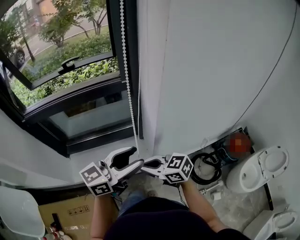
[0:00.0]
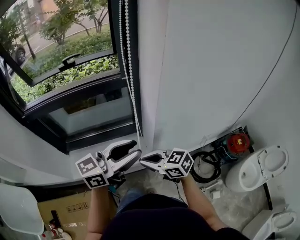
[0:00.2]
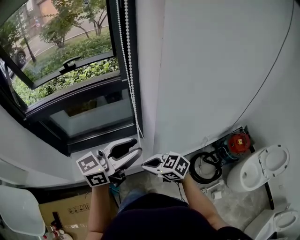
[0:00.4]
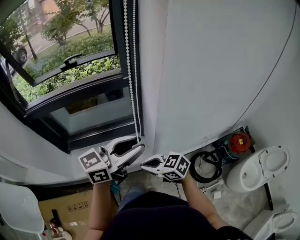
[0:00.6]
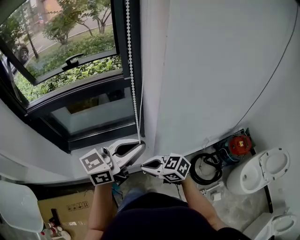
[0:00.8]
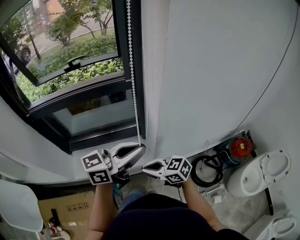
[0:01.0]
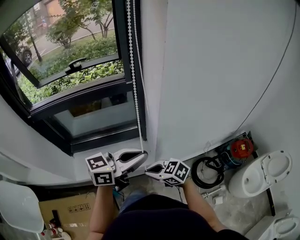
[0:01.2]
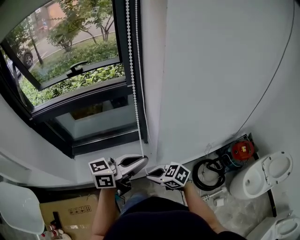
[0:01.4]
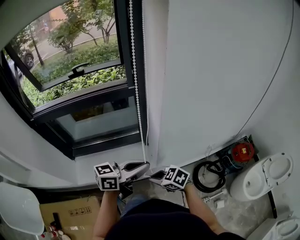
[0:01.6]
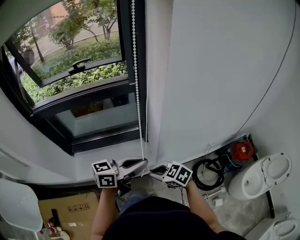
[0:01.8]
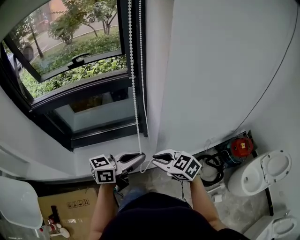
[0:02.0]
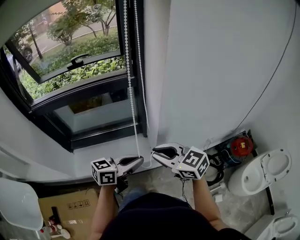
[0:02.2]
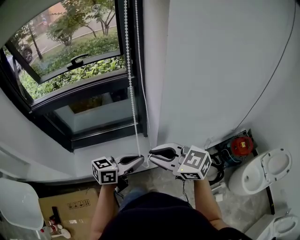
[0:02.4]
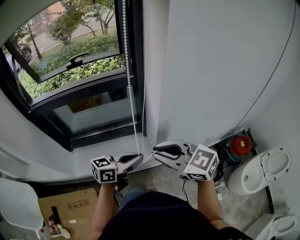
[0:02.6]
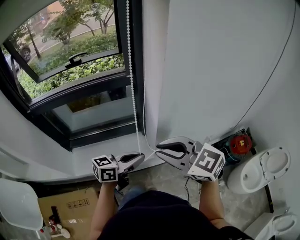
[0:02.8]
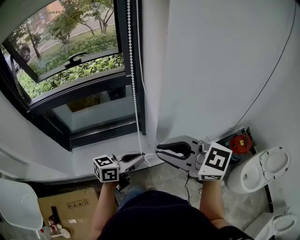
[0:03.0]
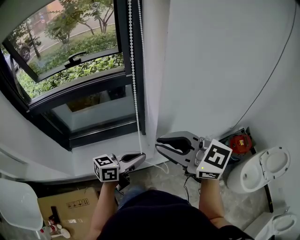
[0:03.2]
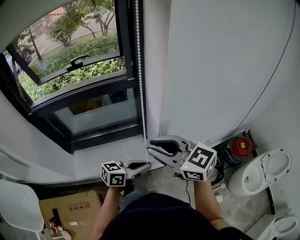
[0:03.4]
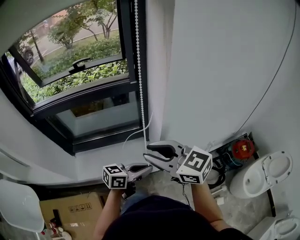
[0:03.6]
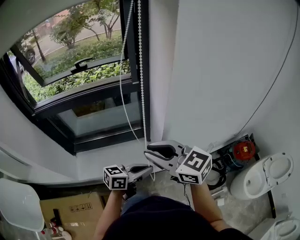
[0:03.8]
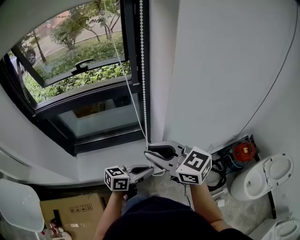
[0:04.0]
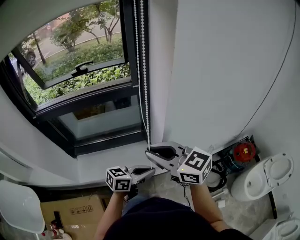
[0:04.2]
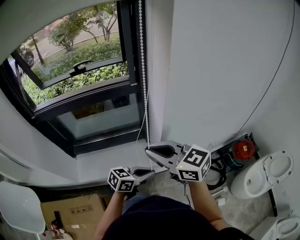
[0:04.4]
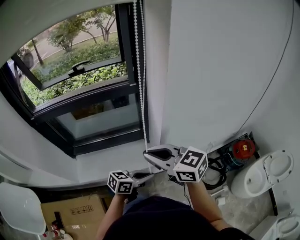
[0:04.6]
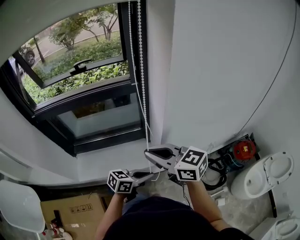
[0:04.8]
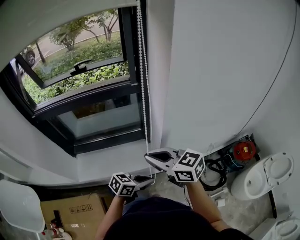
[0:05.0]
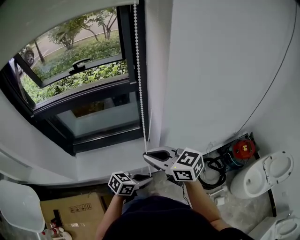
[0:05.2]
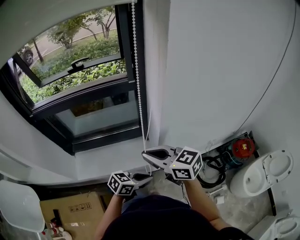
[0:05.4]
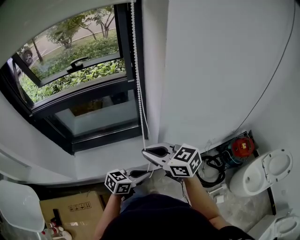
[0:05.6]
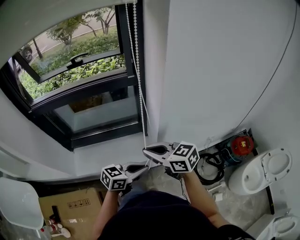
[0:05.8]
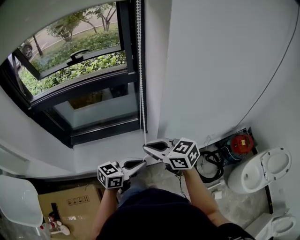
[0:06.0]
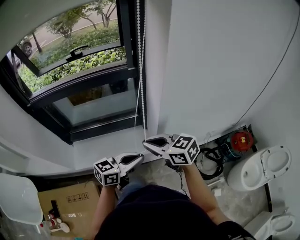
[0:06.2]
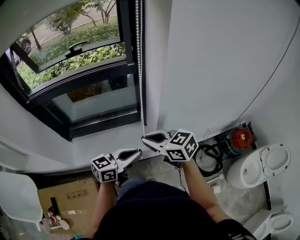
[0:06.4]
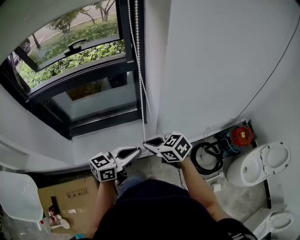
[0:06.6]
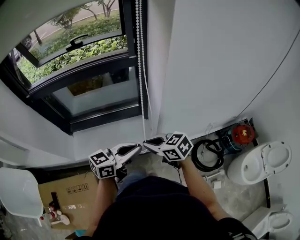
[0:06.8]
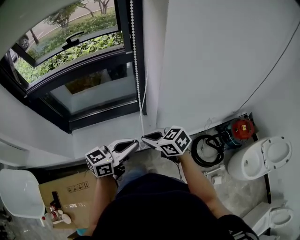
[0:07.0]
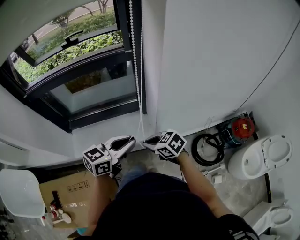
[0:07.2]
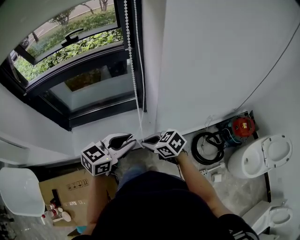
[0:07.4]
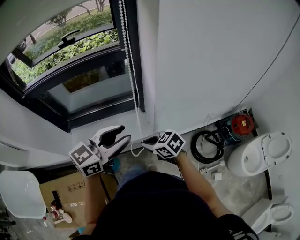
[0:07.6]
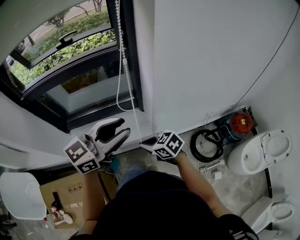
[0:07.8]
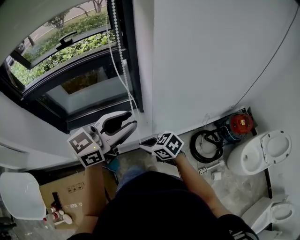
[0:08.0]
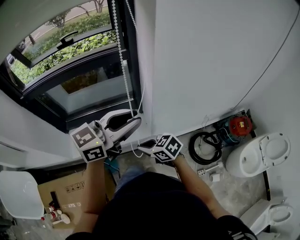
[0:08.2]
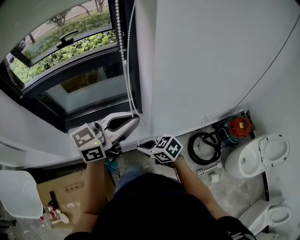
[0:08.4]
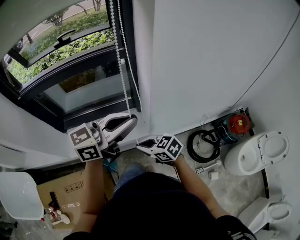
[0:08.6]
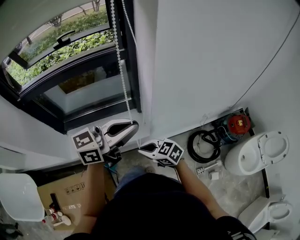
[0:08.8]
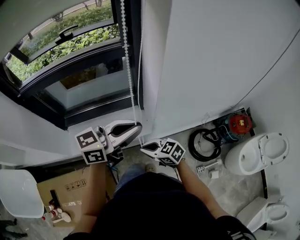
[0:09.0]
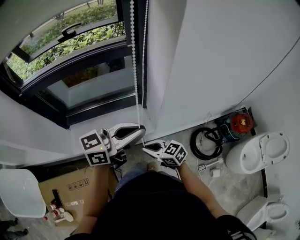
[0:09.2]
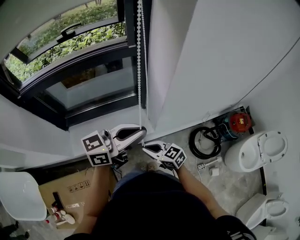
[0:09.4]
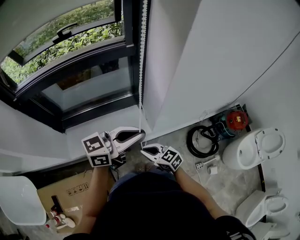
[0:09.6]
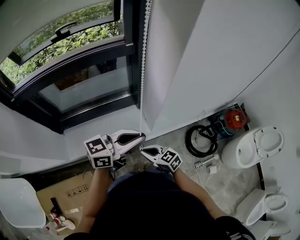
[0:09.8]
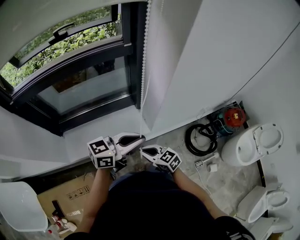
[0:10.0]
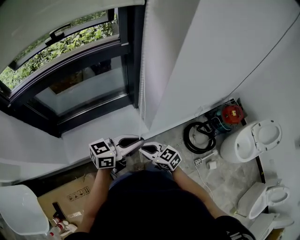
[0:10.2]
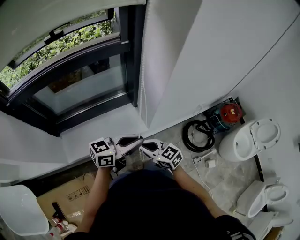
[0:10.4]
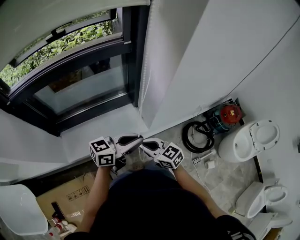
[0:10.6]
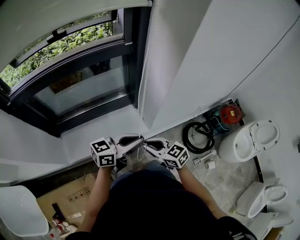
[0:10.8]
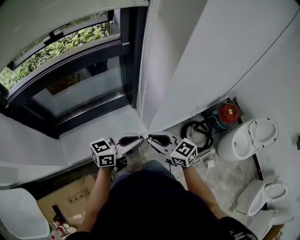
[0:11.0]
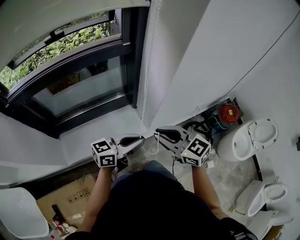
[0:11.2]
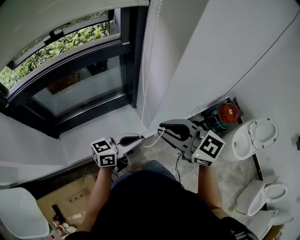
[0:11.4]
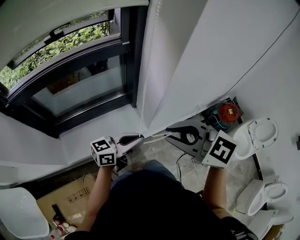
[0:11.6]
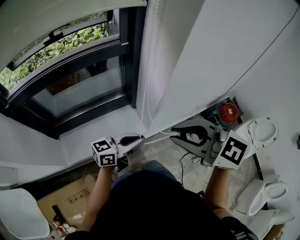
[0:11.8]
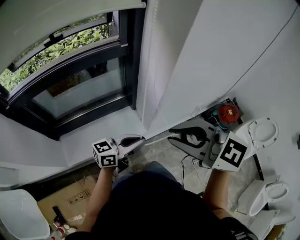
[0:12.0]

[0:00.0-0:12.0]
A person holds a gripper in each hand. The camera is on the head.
0:00.0 to 0:01.6: The left gripper goes approximately 5 cm downward, and closes, while the right gripper goes approximately 10 cm downward, and turns by approximately 20 degrees.
0:01.6 to 0:03.0: The right gripper moves upward, roughly 25 cm, and angles its fingers upward, by approximately 30 degrees.
0:03.0 to 0:04.4: The right gripper changes place by some 10 cm; the left gripper moves downward, approximately 5 cm.
0:04.4 to 0:06.0: The right gripper goes approximately 10 cm downward.
0:06.0 to 0:07.6: The right gripper travels downward by approximately 15 cm, and rotates approximately 20 degrees; the left gripper is displaced upward by some 10 cm, and opens up.
0:07.6 to 0:09.0: The left gripper closes.
0:09.0 to 0:10.4: The right gripper turns by some 20 degrees, while the left gripper shifts roughly 15 cm downward.
0:10.4 to 0:12.0: The right gripper shifts approximately 30 cm upward, and changes its angle by some 20 degrees.

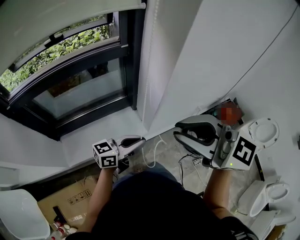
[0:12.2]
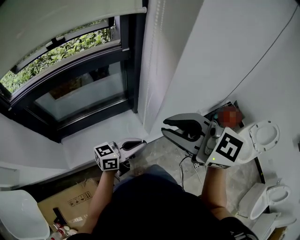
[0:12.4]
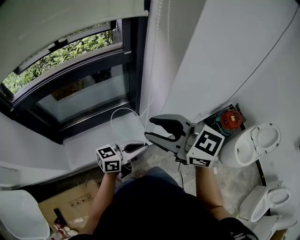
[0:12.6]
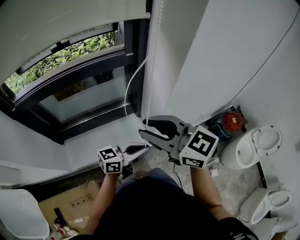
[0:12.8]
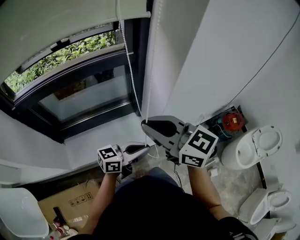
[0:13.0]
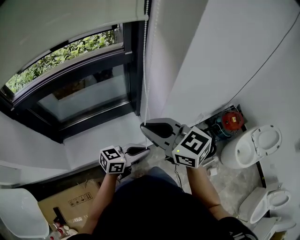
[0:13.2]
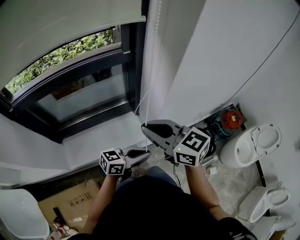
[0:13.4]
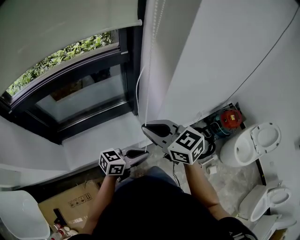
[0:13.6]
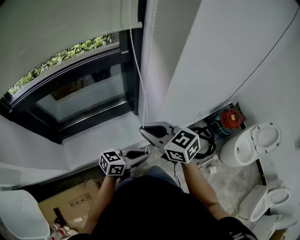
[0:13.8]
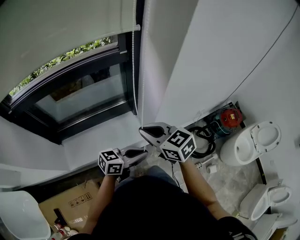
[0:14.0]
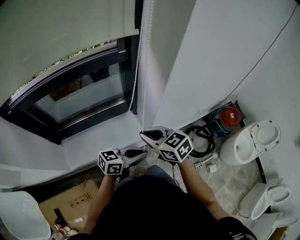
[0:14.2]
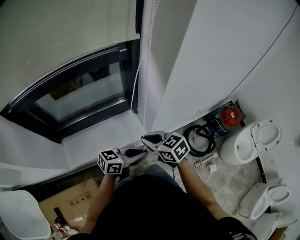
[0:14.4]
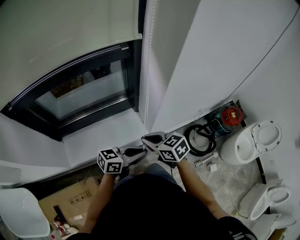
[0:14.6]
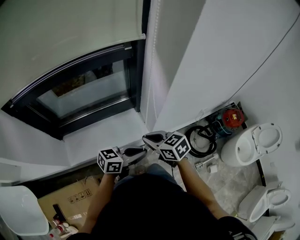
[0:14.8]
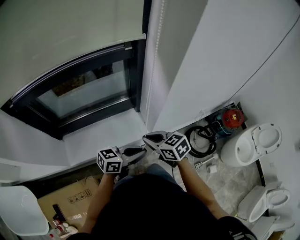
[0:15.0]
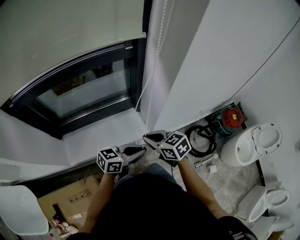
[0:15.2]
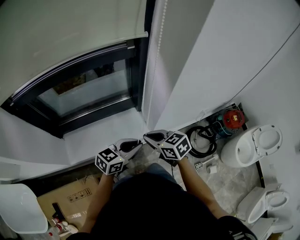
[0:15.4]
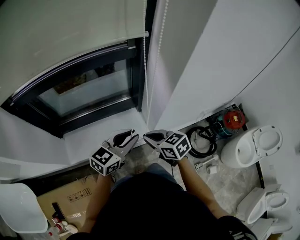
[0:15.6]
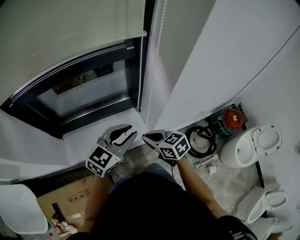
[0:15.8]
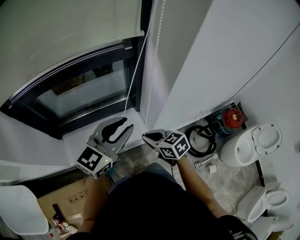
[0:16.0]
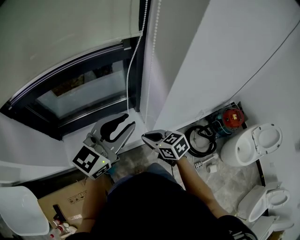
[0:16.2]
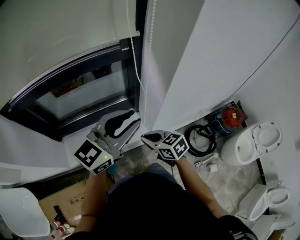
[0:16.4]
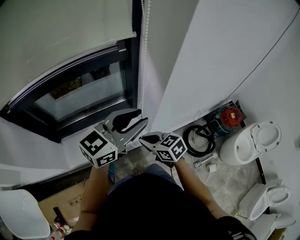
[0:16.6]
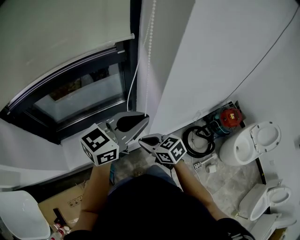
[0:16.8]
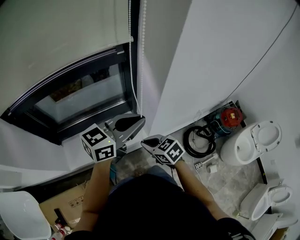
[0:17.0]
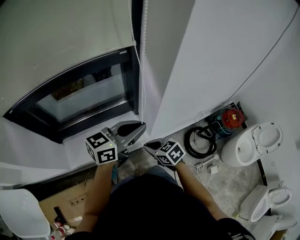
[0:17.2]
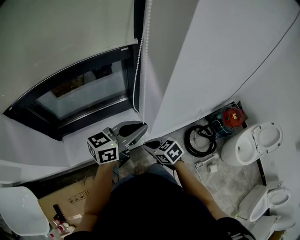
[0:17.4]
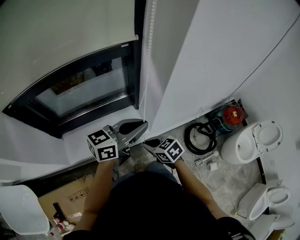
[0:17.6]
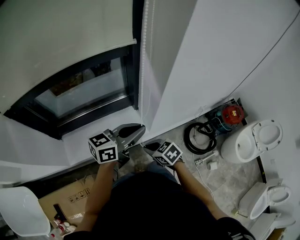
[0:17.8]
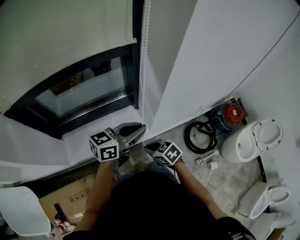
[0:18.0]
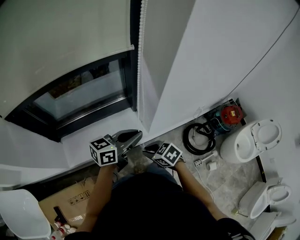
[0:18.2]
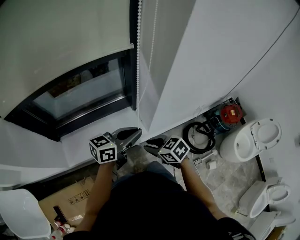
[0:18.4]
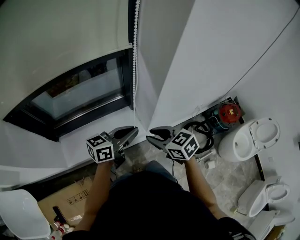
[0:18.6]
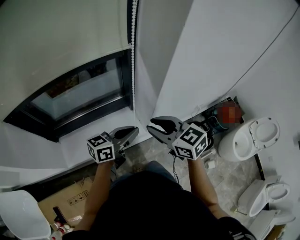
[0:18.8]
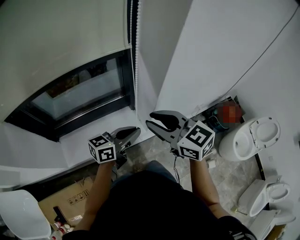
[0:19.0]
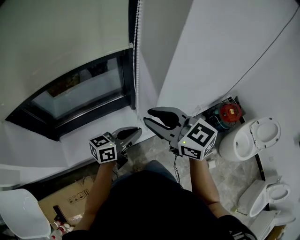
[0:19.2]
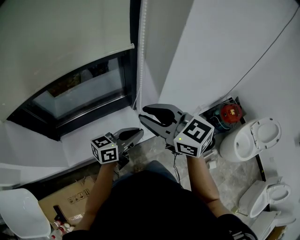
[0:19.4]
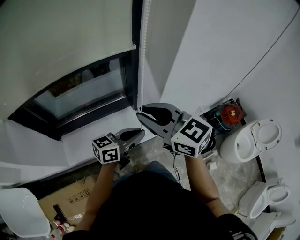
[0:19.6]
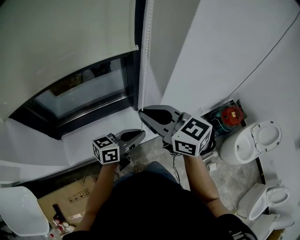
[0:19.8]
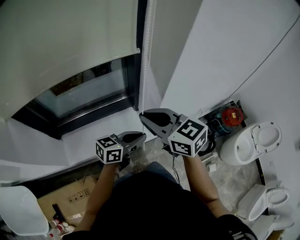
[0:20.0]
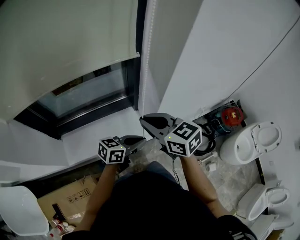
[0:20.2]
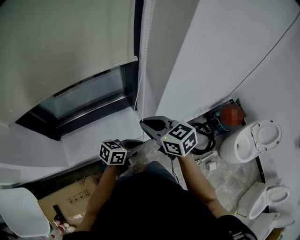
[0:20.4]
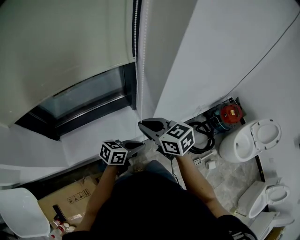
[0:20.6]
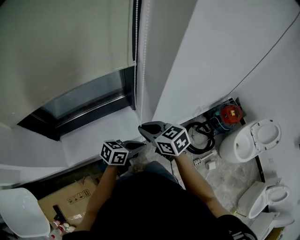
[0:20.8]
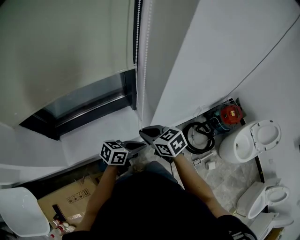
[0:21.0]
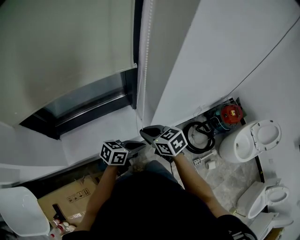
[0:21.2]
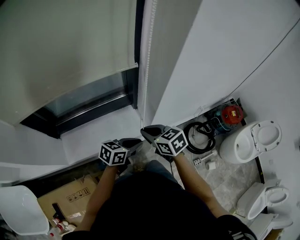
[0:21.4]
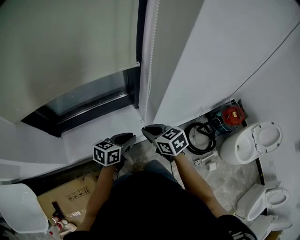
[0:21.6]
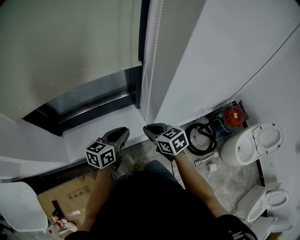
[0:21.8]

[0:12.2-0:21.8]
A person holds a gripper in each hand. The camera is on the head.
0:12.2 to 0:13.8: The left gripper is displaced downward by approximately 5 cm. Meanwhile the right gripper heads downward, covering some 15 cm, changes its angle by some 30 degrees, and opens and closes again.
0:13.8 to 0:15.4: The right gripper travels downward by about 10 cm; the left gripper ends up approximately 5 cm from where it was.
0:15.4 to 0:17.0: The left gripper travels upward by roughly 15 cm.
0:17.0 to 0:18.6: The left gripper is displaced downward by about 10 cm; the right gripper ends up some 5 cm from where it was.
0:18.6 to 0:20.2: The left gripper is displaced downward by some 5 cm, while the right gripper is displaced upward by roughly 10 cm.
0:20.2 to 0:21.8: The left gripper ends up roughly 10 cm from where it was, and swivels approximately 30 degrees; the right gripper heads downward, covering approximately 15 cm.

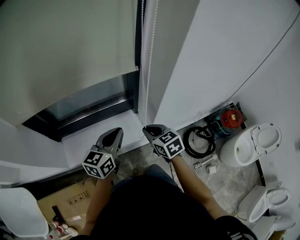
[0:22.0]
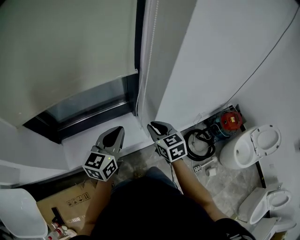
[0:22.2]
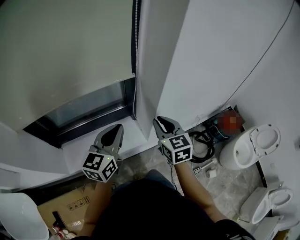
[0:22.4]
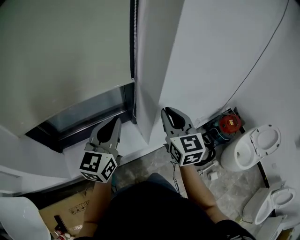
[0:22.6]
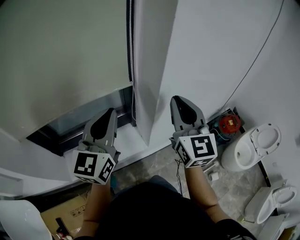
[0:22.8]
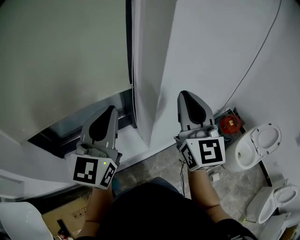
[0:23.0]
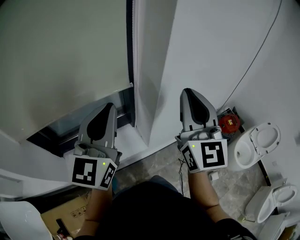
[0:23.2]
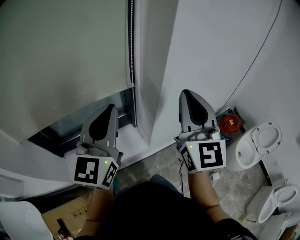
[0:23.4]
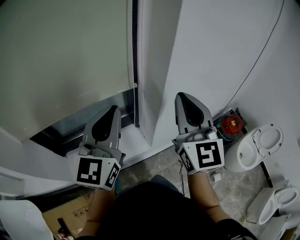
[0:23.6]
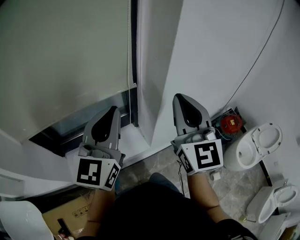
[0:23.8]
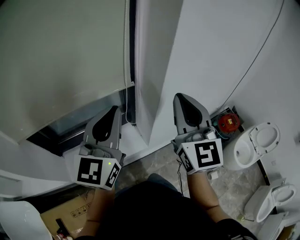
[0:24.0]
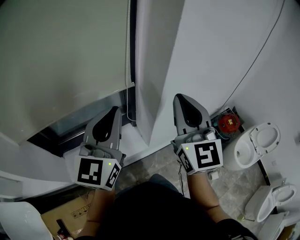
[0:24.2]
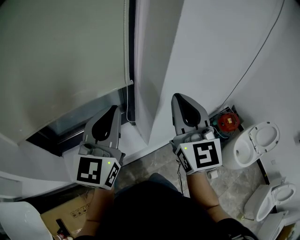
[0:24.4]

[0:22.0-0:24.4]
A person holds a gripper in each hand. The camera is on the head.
0:22.0 to 0:23.2: The two grippers go about 30 cm upward. The right gripper tips its fingers upward by some 50 degrees. The left gripper swivels about 30 degrees.
0:23.2 to 0:24.4: There are only small adjustments of the grippers.
